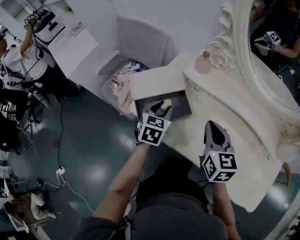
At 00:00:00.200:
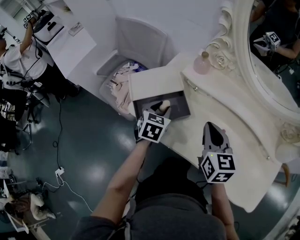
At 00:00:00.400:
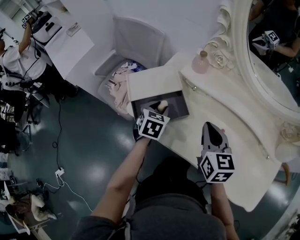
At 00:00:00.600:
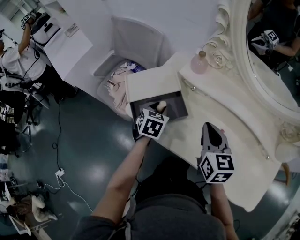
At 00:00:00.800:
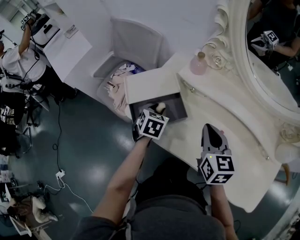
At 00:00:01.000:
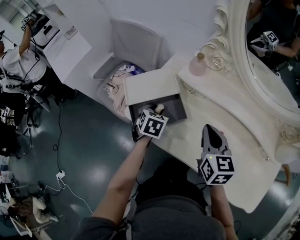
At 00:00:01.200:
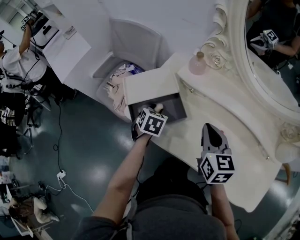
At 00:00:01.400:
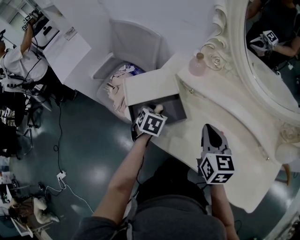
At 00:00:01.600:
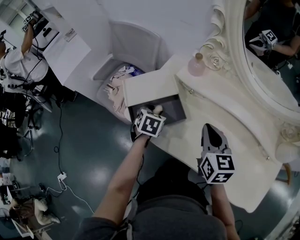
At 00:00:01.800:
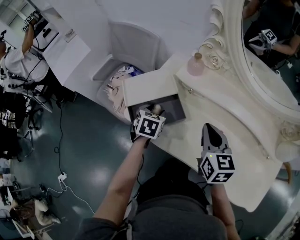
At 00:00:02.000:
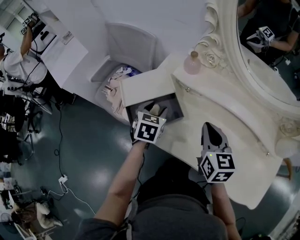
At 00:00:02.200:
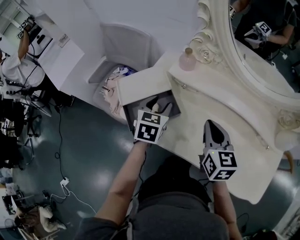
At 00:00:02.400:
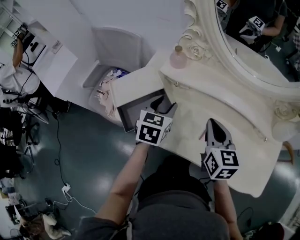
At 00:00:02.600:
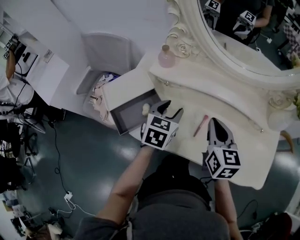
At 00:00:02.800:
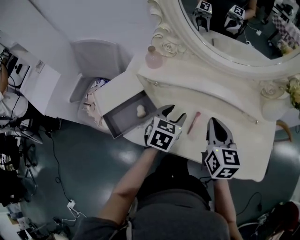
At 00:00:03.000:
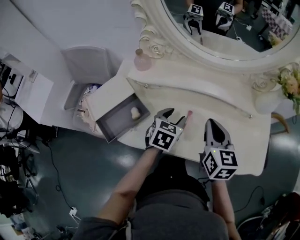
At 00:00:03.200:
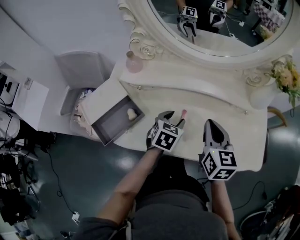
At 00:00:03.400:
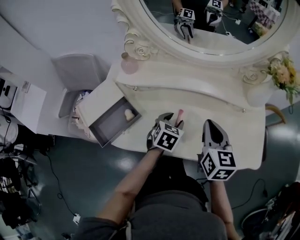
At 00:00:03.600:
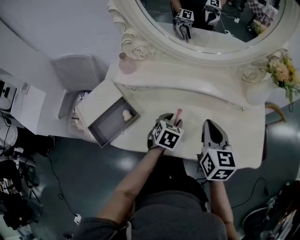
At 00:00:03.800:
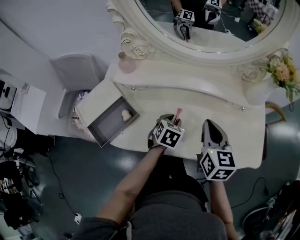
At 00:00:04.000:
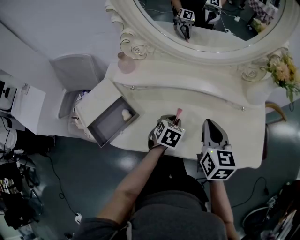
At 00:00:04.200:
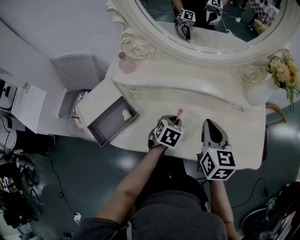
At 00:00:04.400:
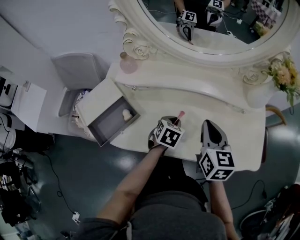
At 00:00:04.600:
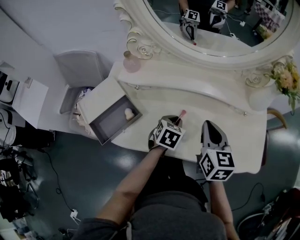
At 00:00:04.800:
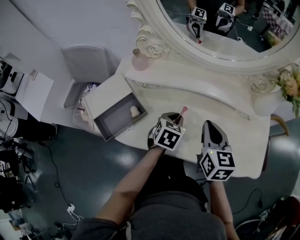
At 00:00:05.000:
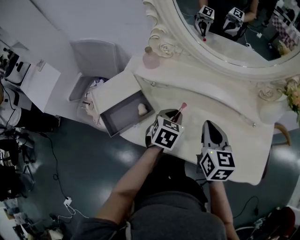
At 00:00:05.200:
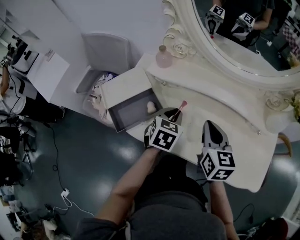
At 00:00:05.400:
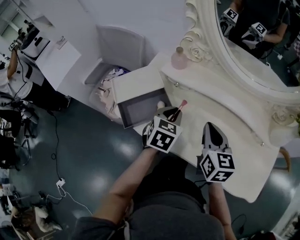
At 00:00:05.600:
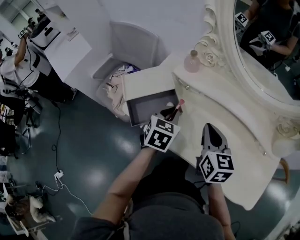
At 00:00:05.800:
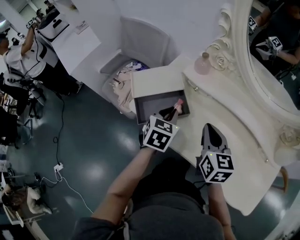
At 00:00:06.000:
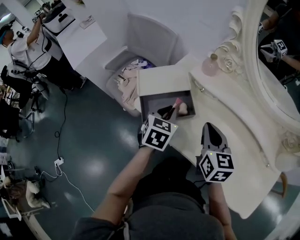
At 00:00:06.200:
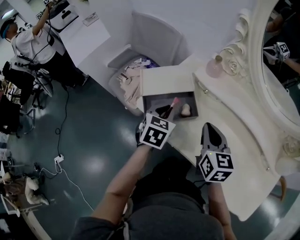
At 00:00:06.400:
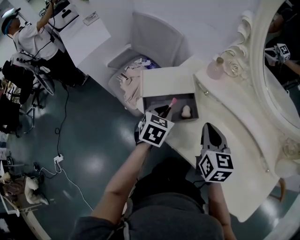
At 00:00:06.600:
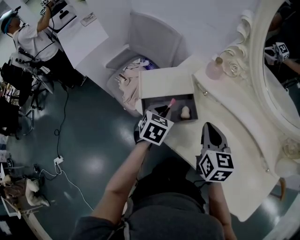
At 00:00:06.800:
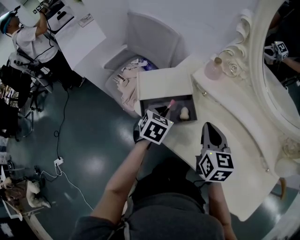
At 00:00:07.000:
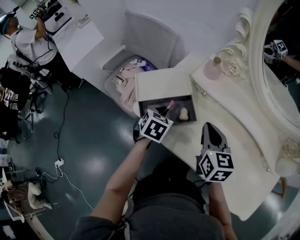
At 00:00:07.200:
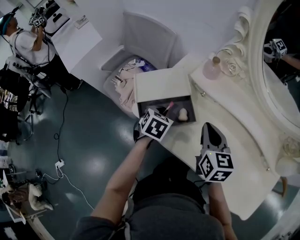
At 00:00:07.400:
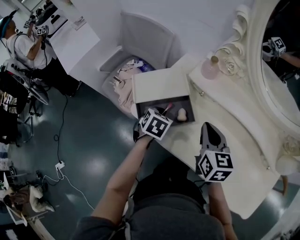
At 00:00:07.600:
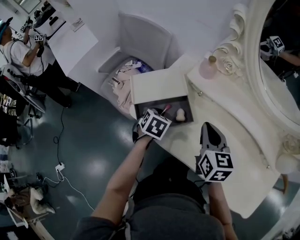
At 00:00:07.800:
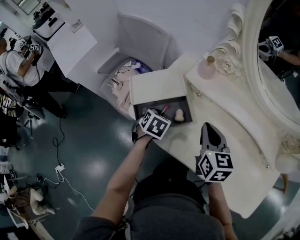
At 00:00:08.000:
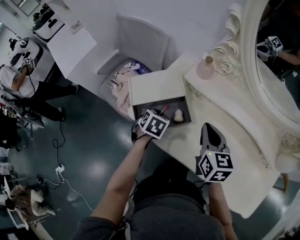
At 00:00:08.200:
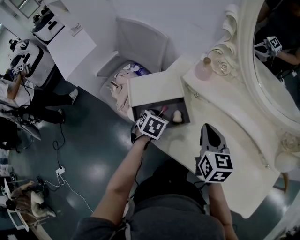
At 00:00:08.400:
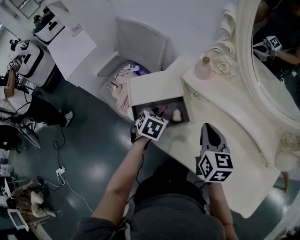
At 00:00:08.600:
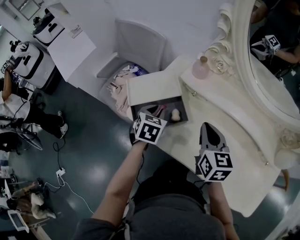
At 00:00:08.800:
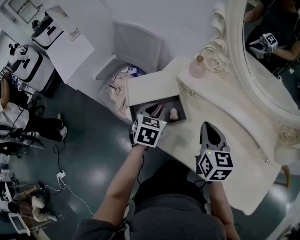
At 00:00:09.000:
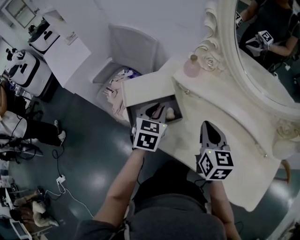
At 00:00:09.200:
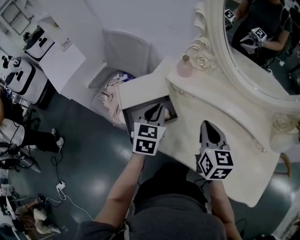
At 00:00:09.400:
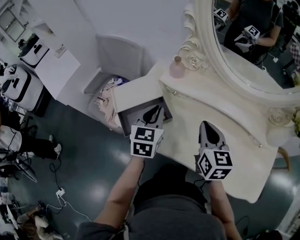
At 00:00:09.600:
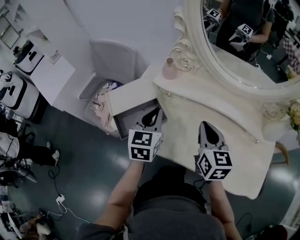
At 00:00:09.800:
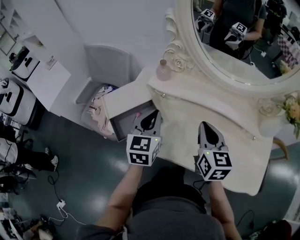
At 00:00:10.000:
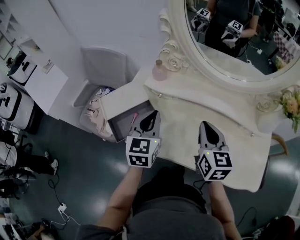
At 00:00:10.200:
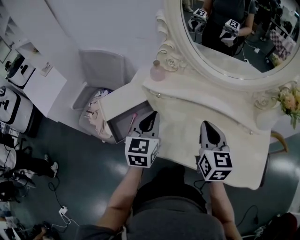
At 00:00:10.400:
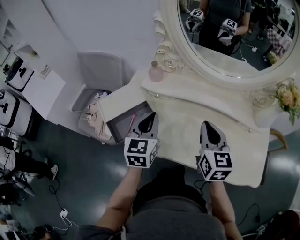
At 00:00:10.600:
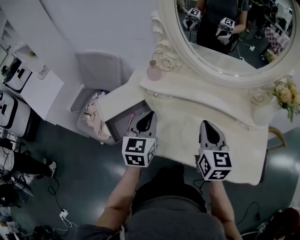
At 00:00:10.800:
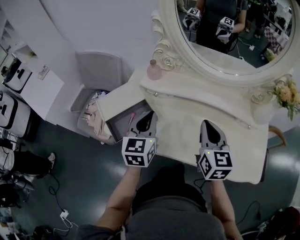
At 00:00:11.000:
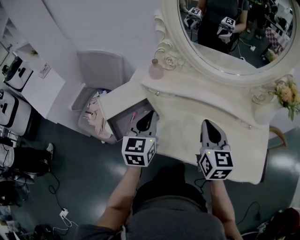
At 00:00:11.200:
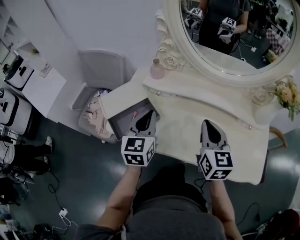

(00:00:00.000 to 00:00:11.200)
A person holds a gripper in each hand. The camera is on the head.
00:00:00.000 - 00:00:01.600: The left gripper moves downward, roughly 5 cm.
00:00:01.600 - 00:00:03.200: The right gripper moves about 20 cm, and rotates some 30 degrees. Meanwhile the left gripper moves roughly 10 cm upward and comes back, and rotates some 40 degrees.
00:00:03.200 - 00:00:04.800: The left gripper closes.
00:00:04.800 - 00:00:06.400: The left gripper changes place by some 30 cm, and changes its angle by approximately 30 degrees, while the right gripper ends up about 20 cm from where it was, and turns by about 30 degrees.
00:00:06.400 - 00:00:08.000: The left gripper heads downward, covering some 10 cm.
00:00:08.000 - 00:00:09.600: The left gripper is displaced upward and to the right by roughly 20 cm, and angles its fingers upward, by some 40 degrees. Meanwhile the right gripper goes some 10 cm to the right and backward.
00:00:09.600 - 00:00:11.200: The right gripper ends up approximately 5 cm from where it was.

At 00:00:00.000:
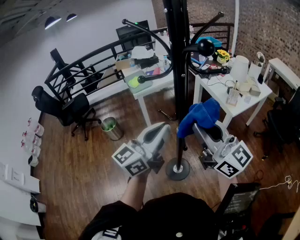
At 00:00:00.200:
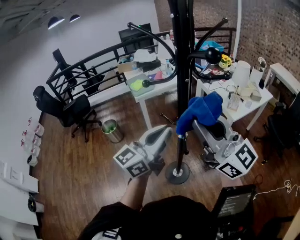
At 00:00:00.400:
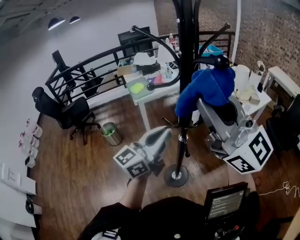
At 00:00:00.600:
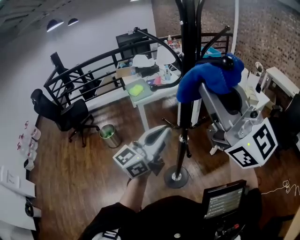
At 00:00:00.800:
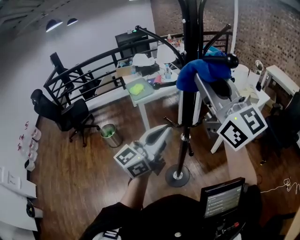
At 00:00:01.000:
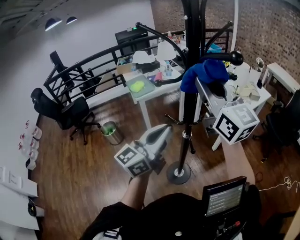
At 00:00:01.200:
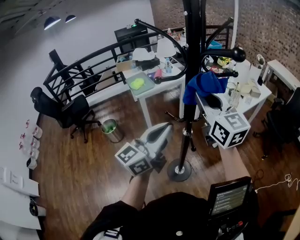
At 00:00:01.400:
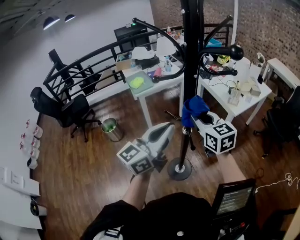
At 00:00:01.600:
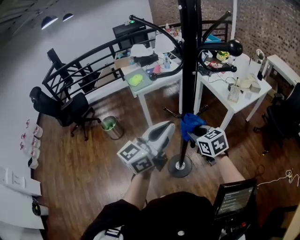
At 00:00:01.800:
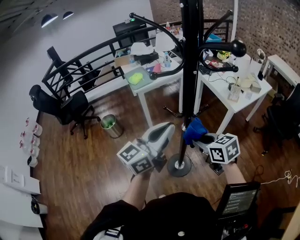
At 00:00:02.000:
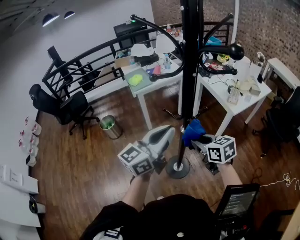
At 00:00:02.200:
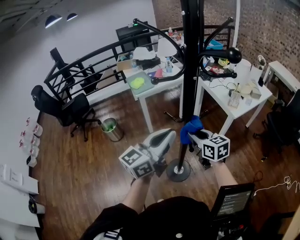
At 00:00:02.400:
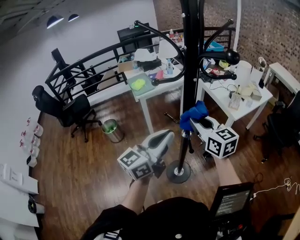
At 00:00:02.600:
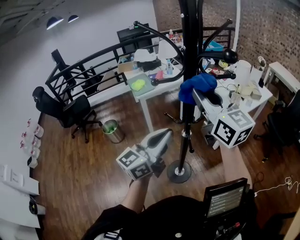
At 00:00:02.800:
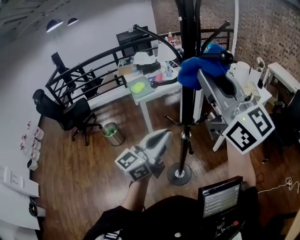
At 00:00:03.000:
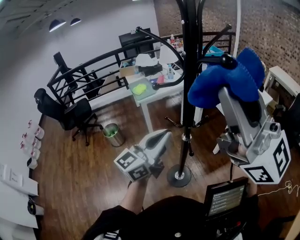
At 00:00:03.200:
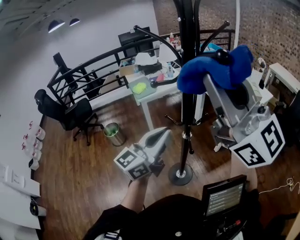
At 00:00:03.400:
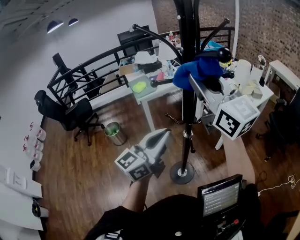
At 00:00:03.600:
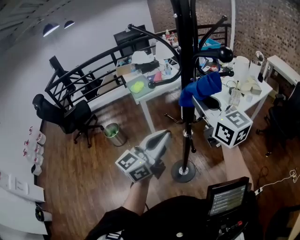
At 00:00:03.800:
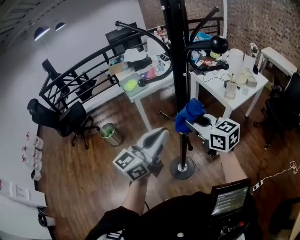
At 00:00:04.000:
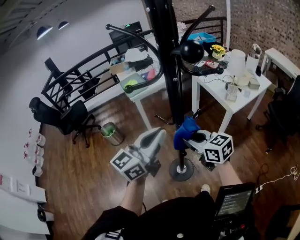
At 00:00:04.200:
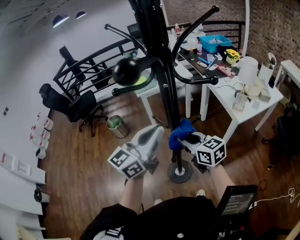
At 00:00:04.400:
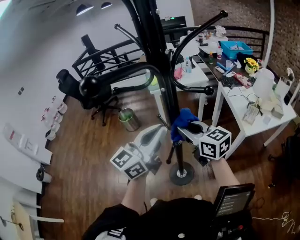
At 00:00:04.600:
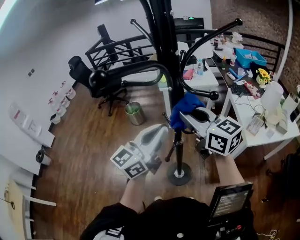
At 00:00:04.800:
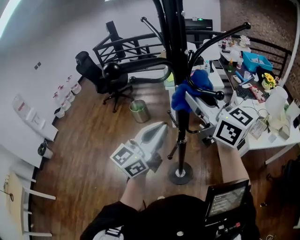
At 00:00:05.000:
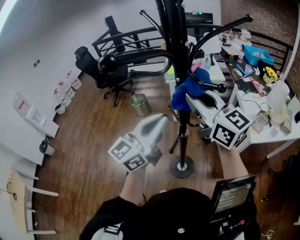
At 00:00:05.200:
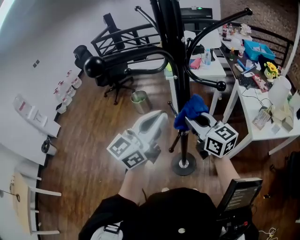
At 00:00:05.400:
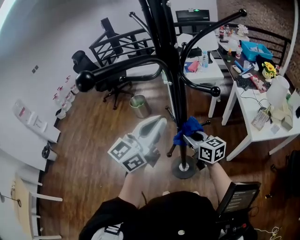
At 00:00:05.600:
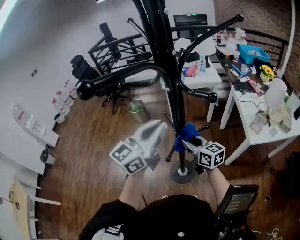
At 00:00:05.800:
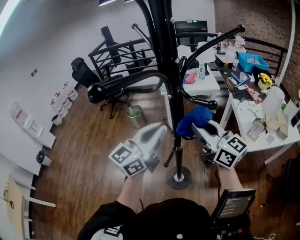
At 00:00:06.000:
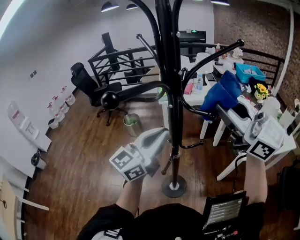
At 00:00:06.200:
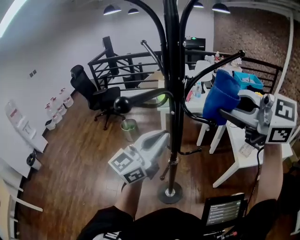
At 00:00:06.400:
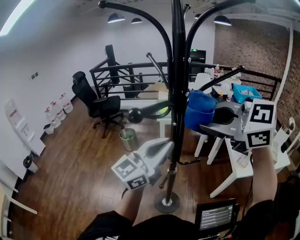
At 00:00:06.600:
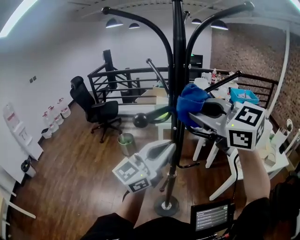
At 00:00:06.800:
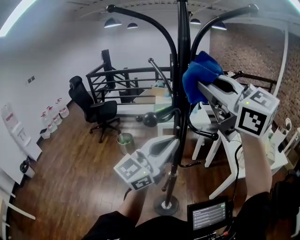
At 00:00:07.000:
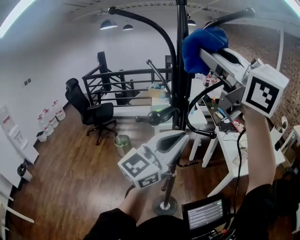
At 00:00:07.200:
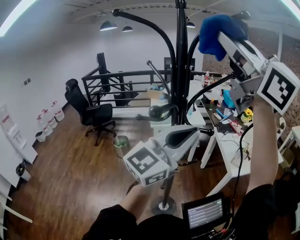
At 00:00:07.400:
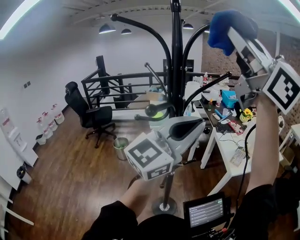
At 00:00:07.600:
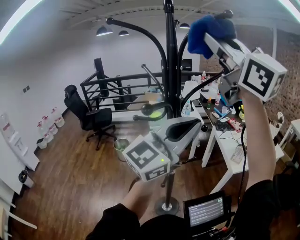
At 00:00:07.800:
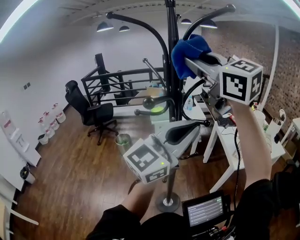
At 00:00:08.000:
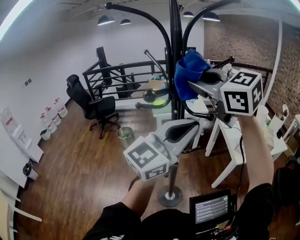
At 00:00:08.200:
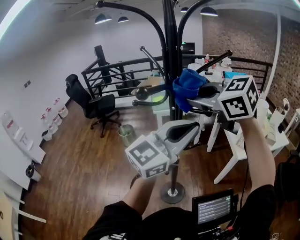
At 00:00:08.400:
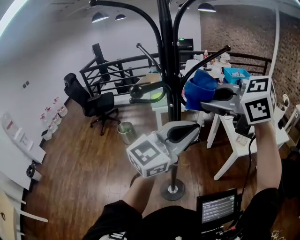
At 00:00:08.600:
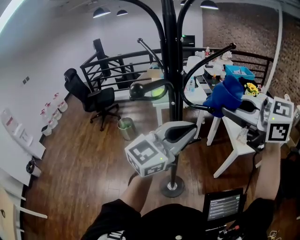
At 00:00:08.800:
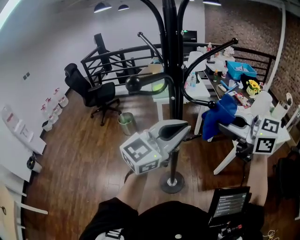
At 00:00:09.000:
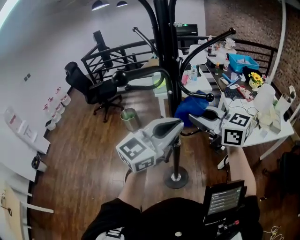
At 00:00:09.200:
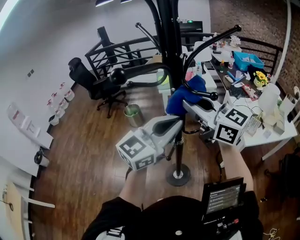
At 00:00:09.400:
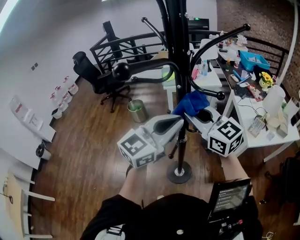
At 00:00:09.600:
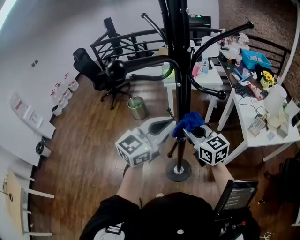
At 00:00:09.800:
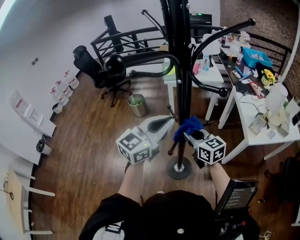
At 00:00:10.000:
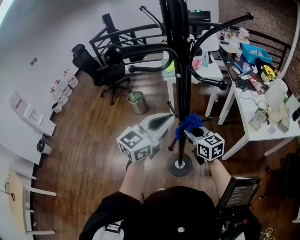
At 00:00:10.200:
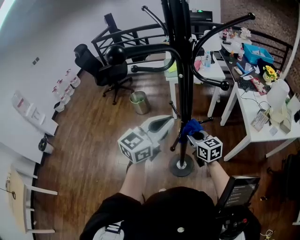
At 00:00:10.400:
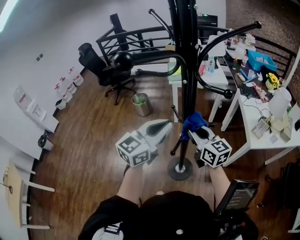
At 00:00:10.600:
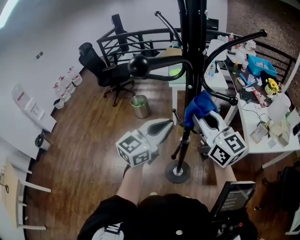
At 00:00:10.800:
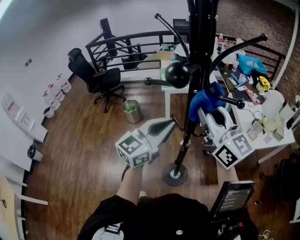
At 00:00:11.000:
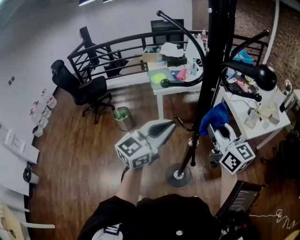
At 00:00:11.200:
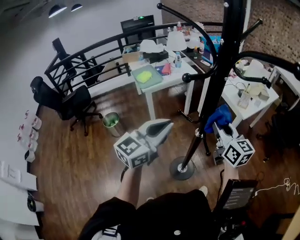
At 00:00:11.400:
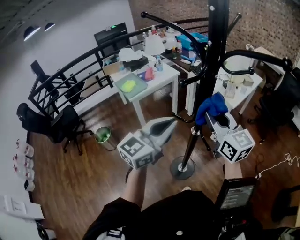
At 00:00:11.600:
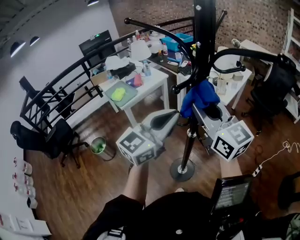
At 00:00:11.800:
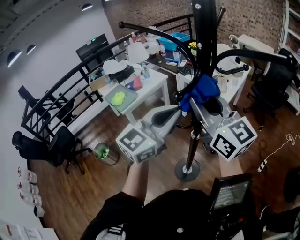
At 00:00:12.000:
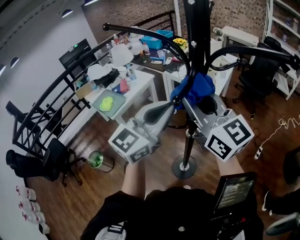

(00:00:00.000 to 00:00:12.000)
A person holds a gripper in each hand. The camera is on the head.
00:00:00.000 - 00:00:01.600: The right gripper goes some 25 cm downward, and points its fingers approximately 50 degrees further downward.
00:00:01.600 - 00:00:03.000: The right gripper goes about 40 cm upward, and tips its fingers upward by about 70 degrees.
00:00:03.000 - 00:00:04.400: The left gripper shifts by approximately 10 cm, and changes its angle by about 20 degrees. The right gripper heads downward, covering about 35 cm, and points its fingers approximately 40 degrees further downward.
00:00:04.400 - 00:00:06.000: The right gripper swings up and down, about 35 cm each way, with 2 reversals, and swivels about 30 degrees.
00:00:06.000 - 00:00:07.600: The right gripper travels upward by some 25 cm, and rotates some 20 degrees. The left gripper moves upward, to the right and backward, roughly 20 cm, and rotates roughly 20 degrees.
00:00:07.600 - 00:00:09.000: The left gripper is displaced downward by approximately 15 cm. Meanwhile the right gripper is displaced downward by about 35 cm, and rotates approximately 40 degrees.
00:00:09.000 - 00:00:10.400: The left gripper moves downward and to the left, about 10 cm. The right gripper swings up and down, some 30 cm each way, with 2 reversals.
00:00:10.400 - 00:00:12.000: The left gripper shifts by roughly 10 cm, and swivels roughly 60 degrees. Meanwhile the right gripper swings up and down, about 20 cm each way, with 2 reversals, and swivels approximately 60 degrees.
